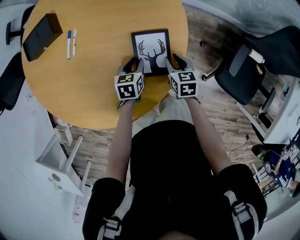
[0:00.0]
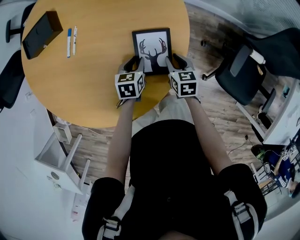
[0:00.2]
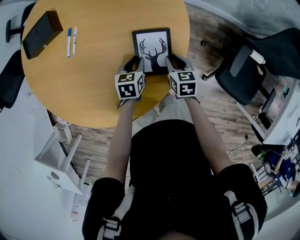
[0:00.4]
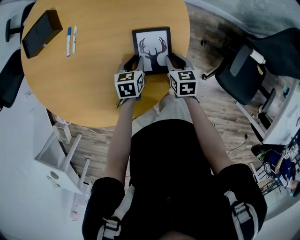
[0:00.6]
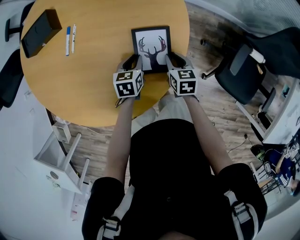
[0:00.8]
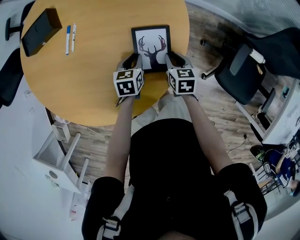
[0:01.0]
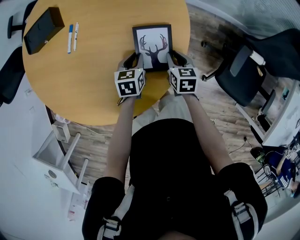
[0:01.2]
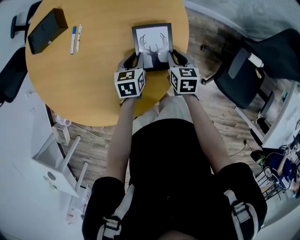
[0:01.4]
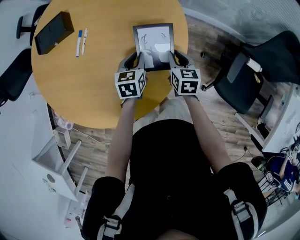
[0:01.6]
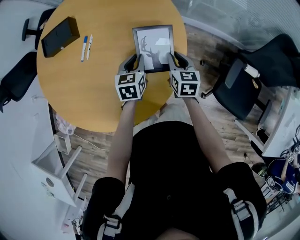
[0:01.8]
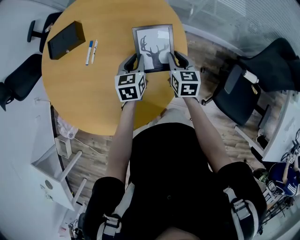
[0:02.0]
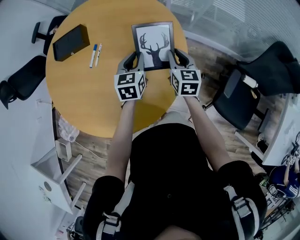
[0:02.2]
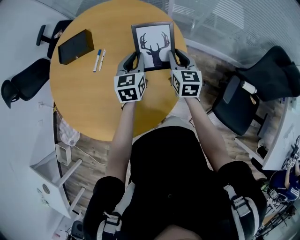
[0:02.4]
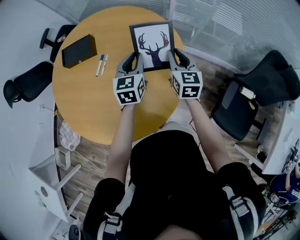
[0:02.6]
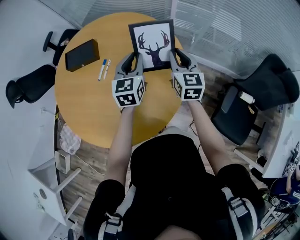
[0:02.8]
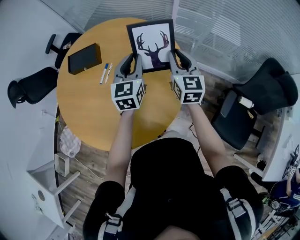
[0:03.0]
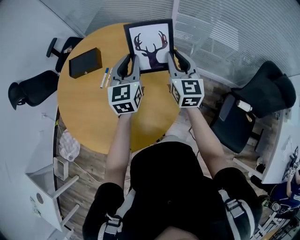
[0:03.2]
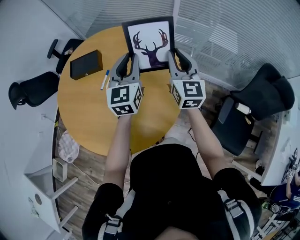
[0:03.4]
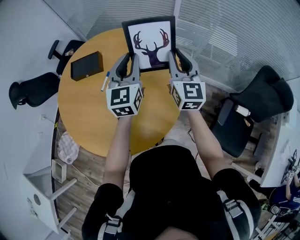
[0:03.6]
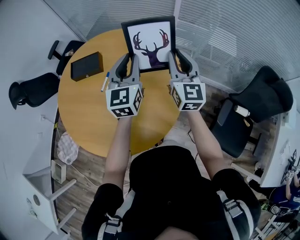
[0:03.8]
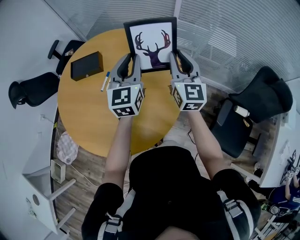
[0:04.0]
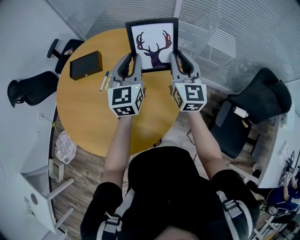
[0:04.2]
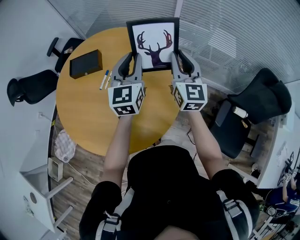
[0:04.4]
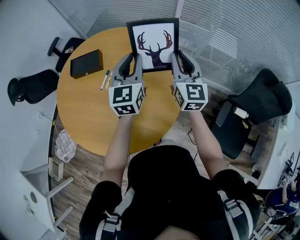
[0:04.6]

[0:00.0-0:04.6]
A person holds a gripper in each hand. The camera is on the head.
0.0 to 1.6 s: The two grippers go about 10 cm upward.
1.6 to 3.0 s: Both grippers travel together upward, some 30 cm. The right gripper tips its fingers upward by approximately 30 degrees; the left gripper tilts its fingers some 30 degrees upward.
3.0 to 4.6 s: Both grippers move upward, roughly 5 cm.

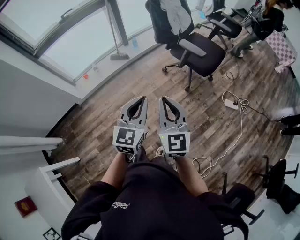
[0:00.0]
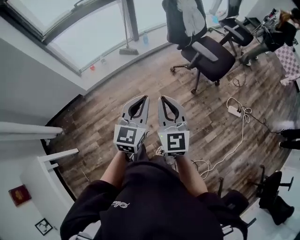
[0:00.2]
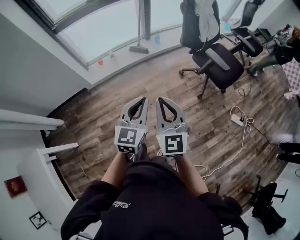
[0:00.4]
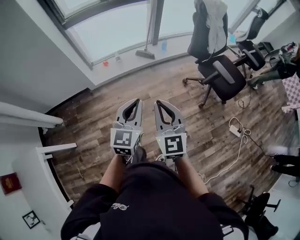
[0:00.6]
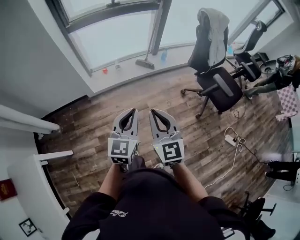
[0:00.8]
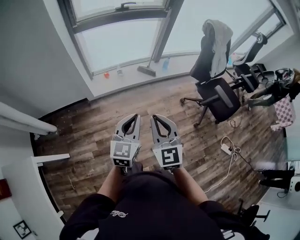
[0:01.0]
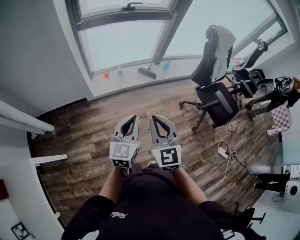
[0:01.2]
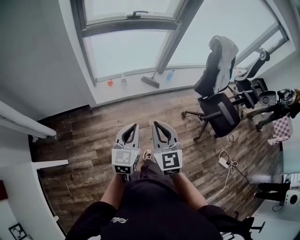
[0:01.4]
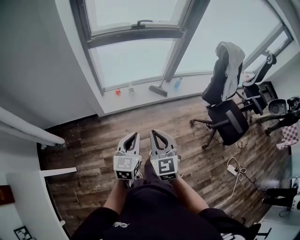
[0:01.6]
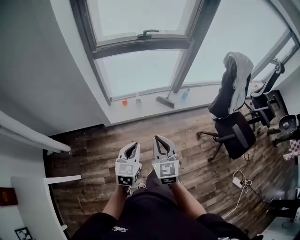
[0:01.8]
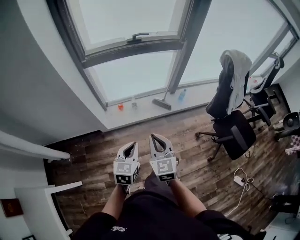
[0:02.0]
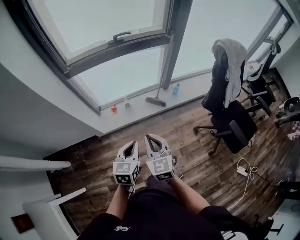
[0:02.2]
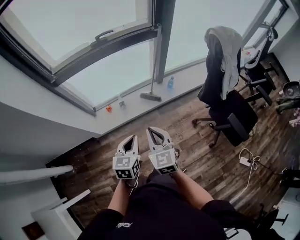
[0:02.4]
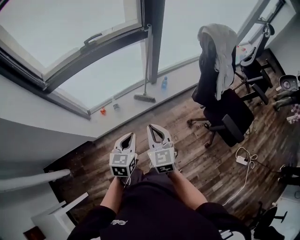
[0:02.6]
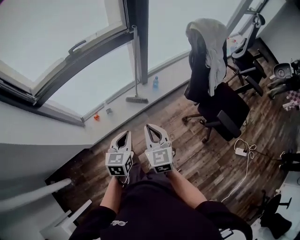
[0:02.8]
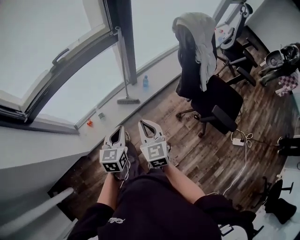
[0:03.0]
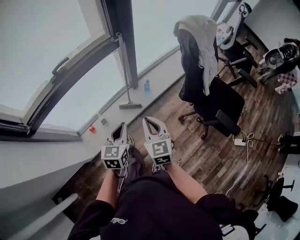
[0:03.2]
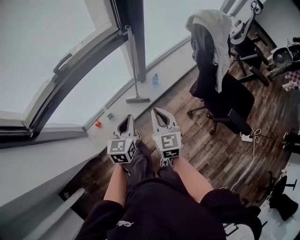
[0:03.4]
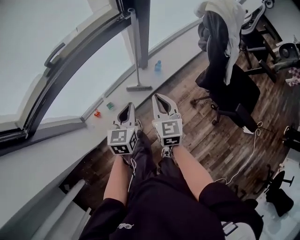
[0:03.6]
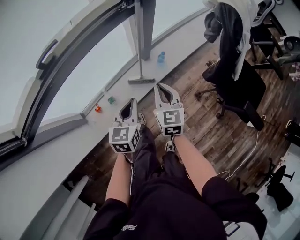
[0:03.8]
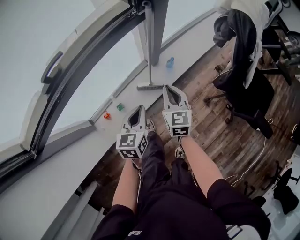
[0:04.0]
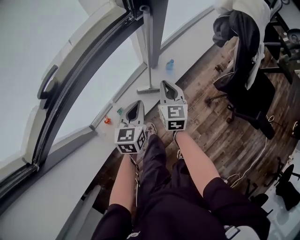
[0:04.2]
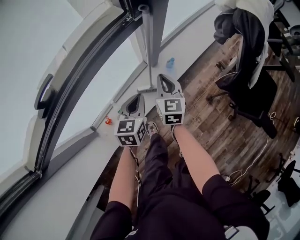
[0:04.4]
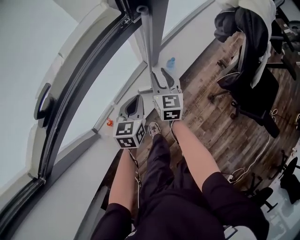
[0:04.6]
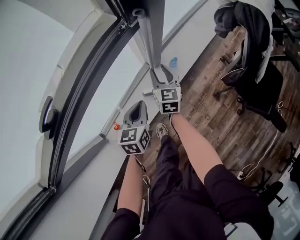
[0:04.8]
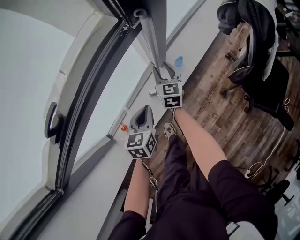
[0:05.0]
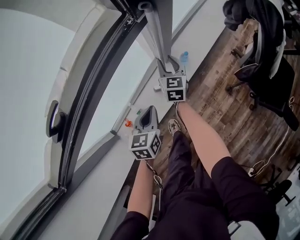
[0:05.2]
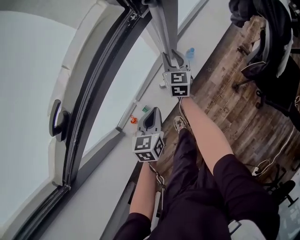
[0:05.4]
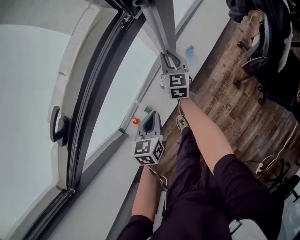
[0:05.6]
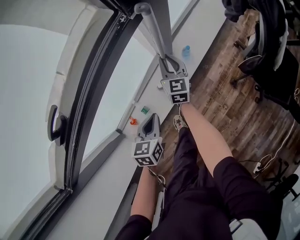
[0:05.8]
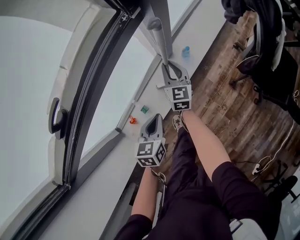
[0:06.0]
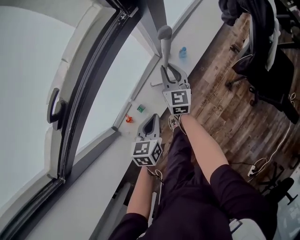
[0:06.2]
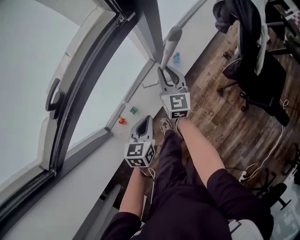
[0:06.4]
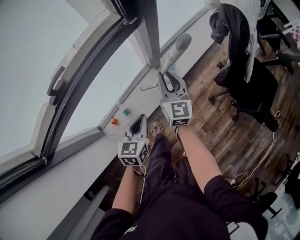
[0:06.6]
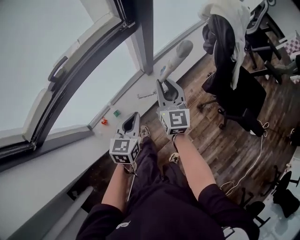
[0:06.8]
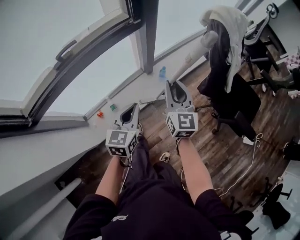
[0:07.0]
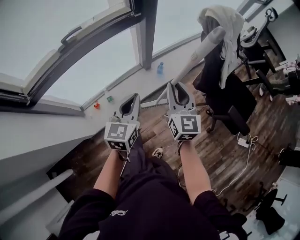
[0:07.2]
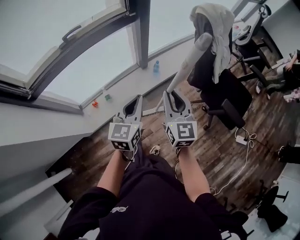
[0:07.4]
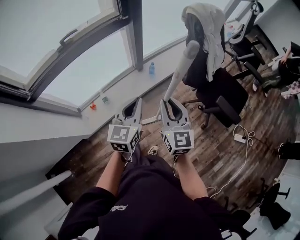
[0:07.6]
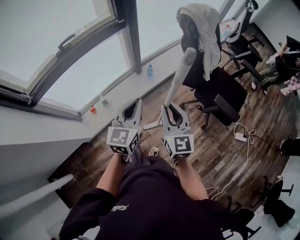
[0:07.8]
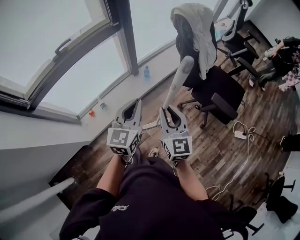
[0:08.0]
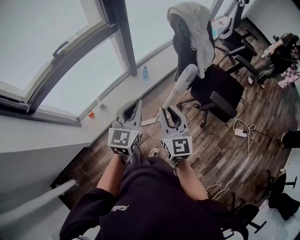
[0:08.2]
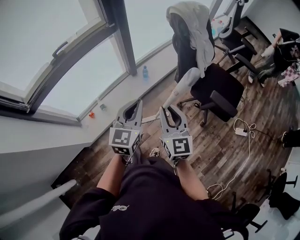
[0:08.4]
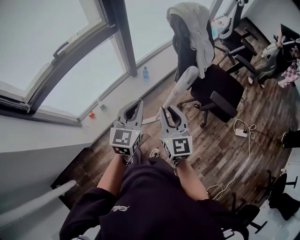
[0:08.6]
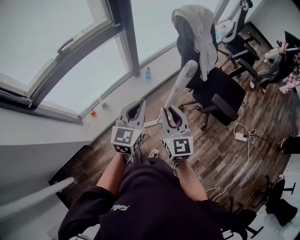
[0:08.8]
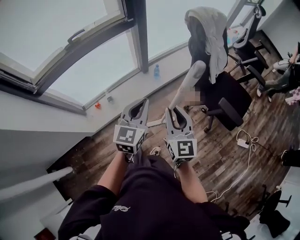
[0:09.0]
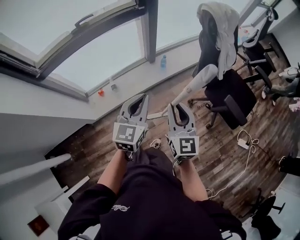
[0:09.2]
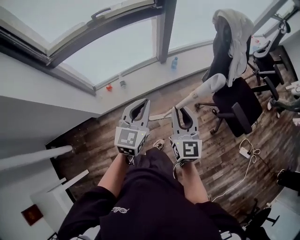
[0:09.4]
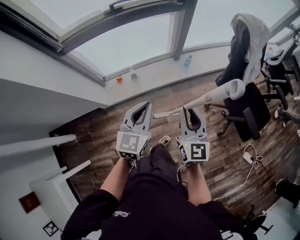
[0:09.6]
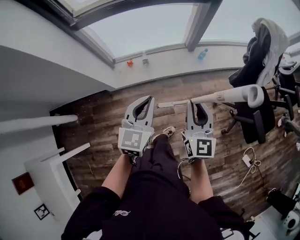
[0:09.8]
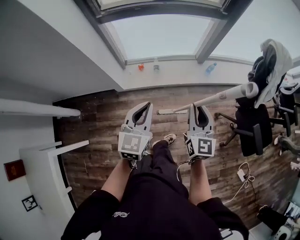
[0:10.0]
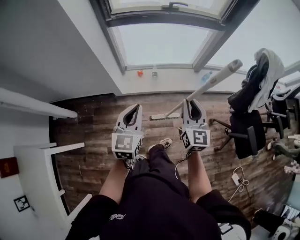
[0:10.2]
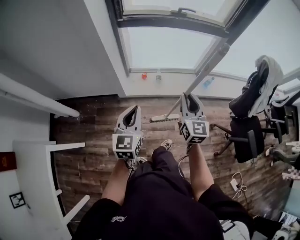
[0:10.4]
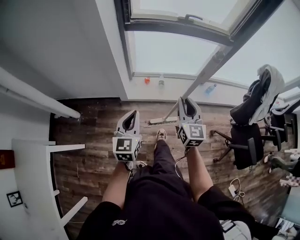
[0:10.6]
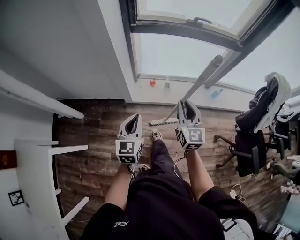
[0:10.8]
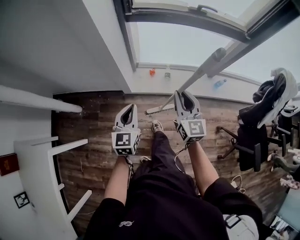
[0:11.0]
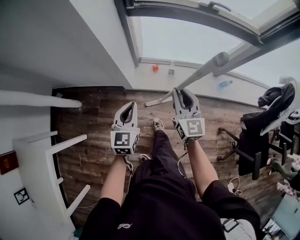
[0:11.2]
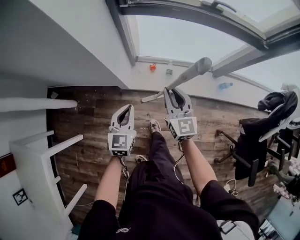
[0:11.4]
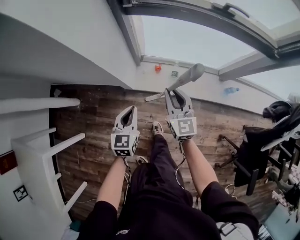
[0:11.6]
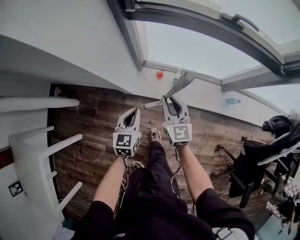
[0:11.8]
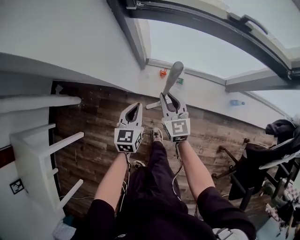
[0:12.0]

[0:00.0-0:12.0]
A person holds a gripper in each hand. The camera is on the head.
0.0 to 1.6 s: The two grippers travel together, to the left and forward, approximately 40 cm. The left gripper swivels approximately 30 degrees. Meanwhile the right gripper turns by approximately 30 degrees.
1.6 to 3.0 s: The pair of grippers is taken forward and to the right, some 40 cm. The right gripper changes its angle by some 20 degrees.
3.0 to 4.4 s: The two grippers go some 40 cm forward and downward. The right gripper swivels some 20 degrees.
4.4 to 6.0 s: The right gripper travels downward by approximately 5 cm, and opens, then closes once more; the left gripper is displaced backward by about 10 cm.
6.0 to 7.6 s: The right gripper moves backward, upward and to the right, some 60 cm. The left gripper travels upward, to the right and backward by approximately 40 cm, and swivels about 30 degrees.
7.6 to 9.0 s: The right gripper shifts by some 5 cm.
9.0 to 10.4 s: The left gripper ends up some 40 cm from where it was, and turns by approximately 40 degrees, while the right gripper shifts by some 30 cm, and turns by about 30 degrees.
10.4 to 12.0 s: The right gripper is displaced forward, downward and to the left by some 40 cm, and rotates about 30 degrees; the left gripper is displaced forward and downward by about 40 cm.

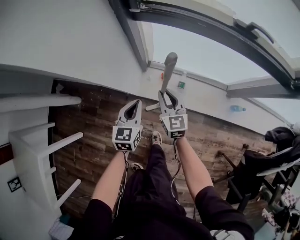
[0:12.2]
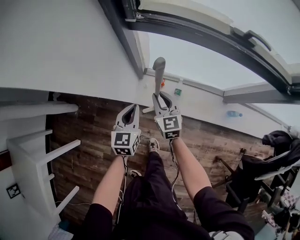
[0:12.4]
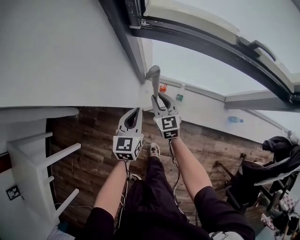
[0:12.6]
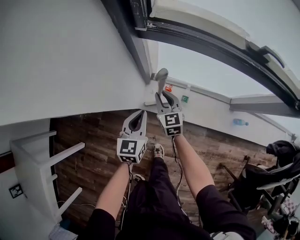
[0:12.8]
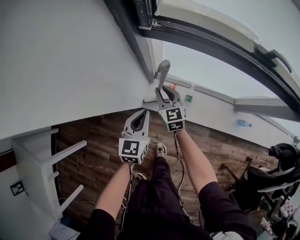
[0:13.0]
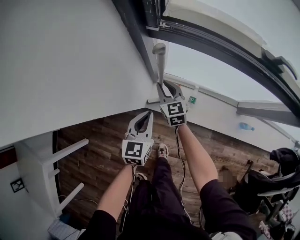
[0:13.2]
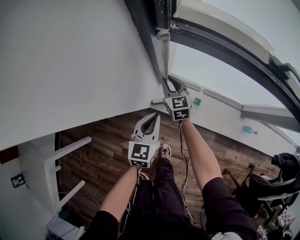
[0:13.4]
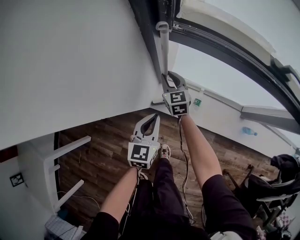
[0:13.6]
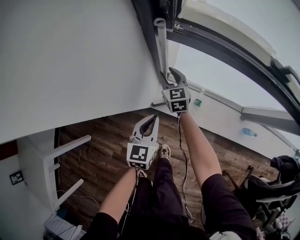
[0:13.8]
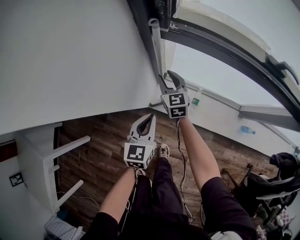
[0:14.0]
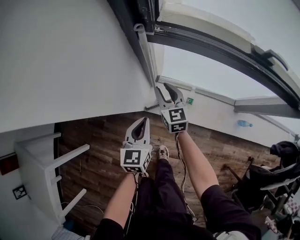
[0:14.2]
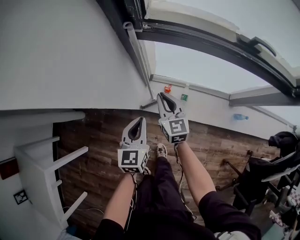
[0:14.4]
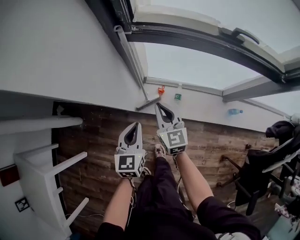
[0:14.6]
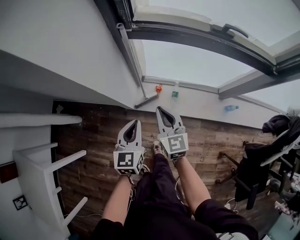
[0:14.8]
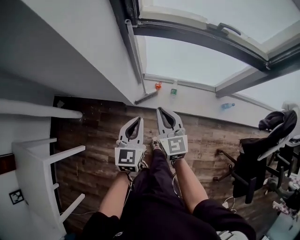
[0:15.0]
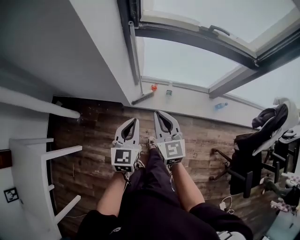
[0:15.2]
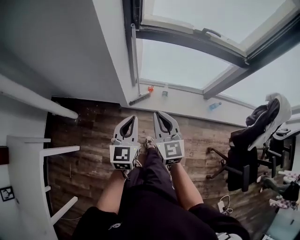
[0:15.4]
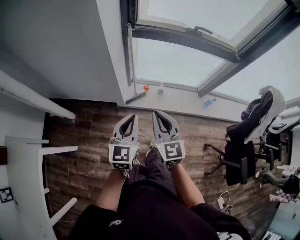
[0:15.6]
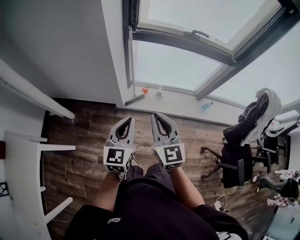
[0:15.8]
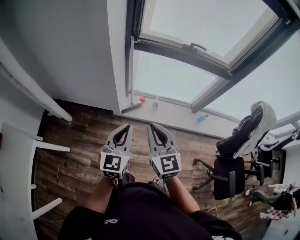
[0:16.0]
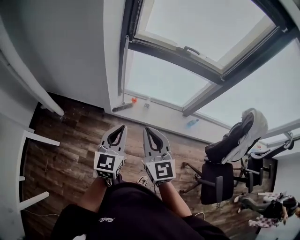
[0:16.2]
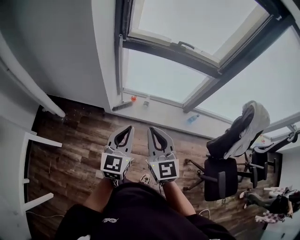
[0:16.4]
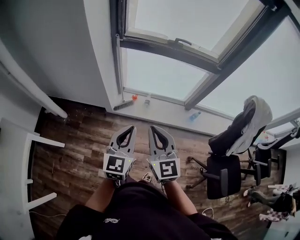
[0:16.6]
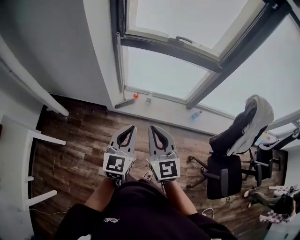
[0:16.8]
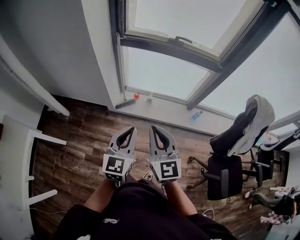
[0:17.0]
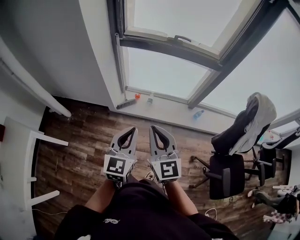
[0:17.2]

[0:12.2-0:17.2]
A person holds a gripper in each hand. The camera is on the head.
12.2 to 13.8 s: The left gripper goes roughly 5 cm forward. The right gripper moves forward, roughly 20 cm.
13.8 to 15.6 s: The left gripper travels backward and upward by approximately 40 cm. The right gripper is displaced backward and upward by some 60 cm, changes its angle by about 20 degrees, and closes its fingers.
15.6 to 17.2 s: The right gripper travels to the right, backward and upward by roughly 25 cm, while the left gripper is displaced to the right and backward by about 25 cm.

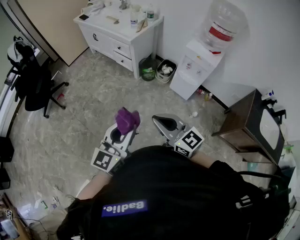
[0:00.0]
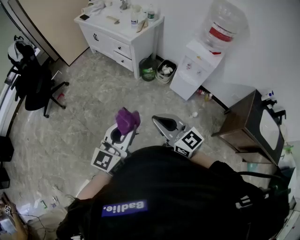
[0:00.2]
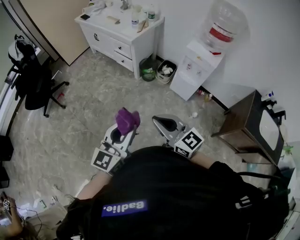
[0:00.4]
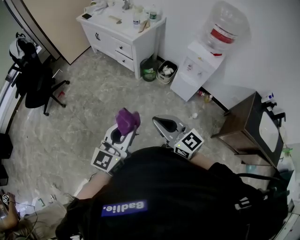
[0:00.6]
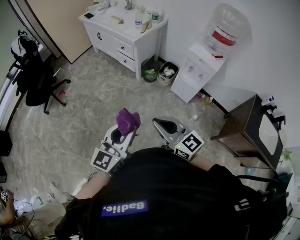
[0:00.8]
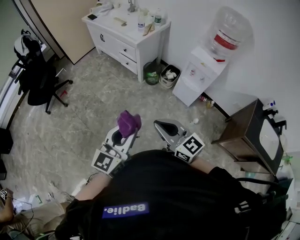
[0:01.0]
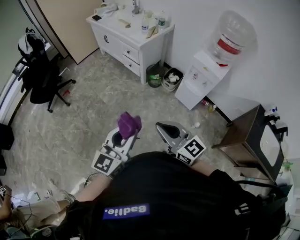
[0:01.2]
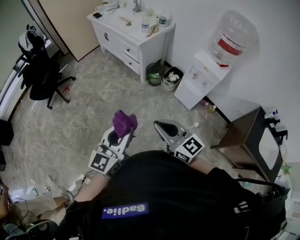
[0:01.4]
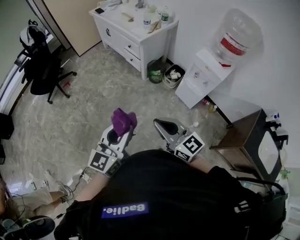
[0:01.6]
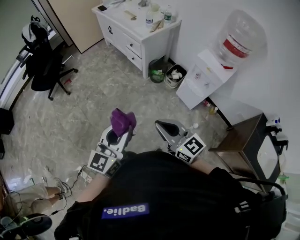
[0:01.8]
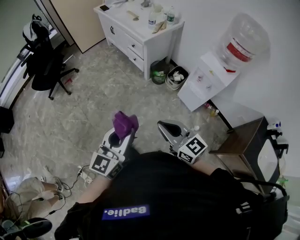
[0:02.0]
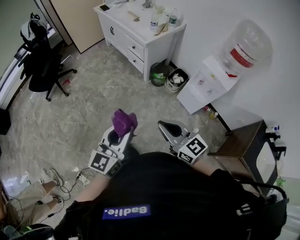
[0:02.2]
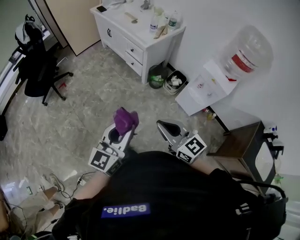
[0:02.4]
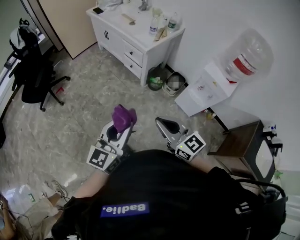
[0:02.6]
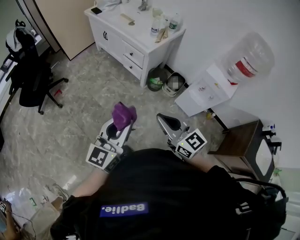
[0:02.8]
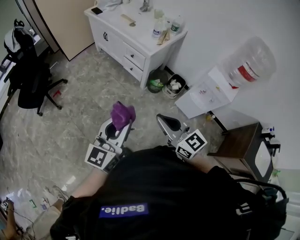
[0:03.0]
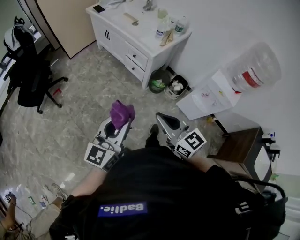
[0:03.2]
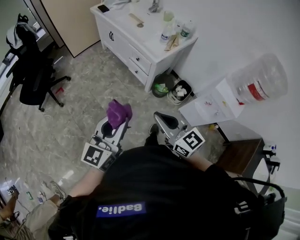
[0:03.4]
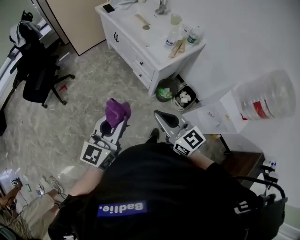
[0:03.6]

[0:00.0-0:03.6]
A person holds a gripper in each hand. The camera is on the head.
0.0 to 1.8 s: The right gripper moves to the right, approximately 5 cm.
1.8 to 3.6 s: The pair of grippers is taken forward, about 40 cm.
